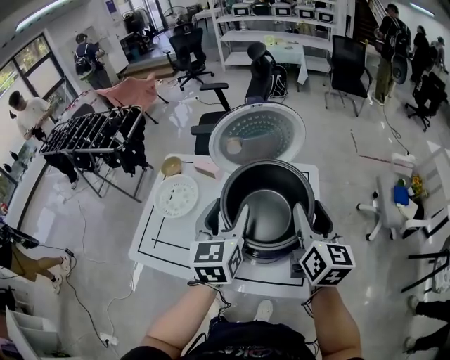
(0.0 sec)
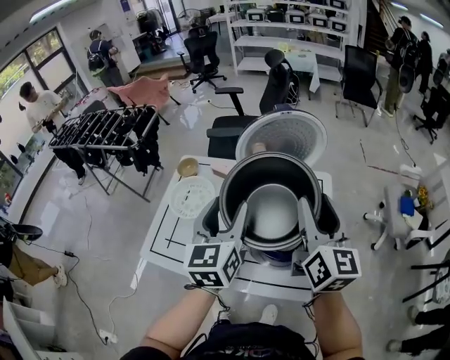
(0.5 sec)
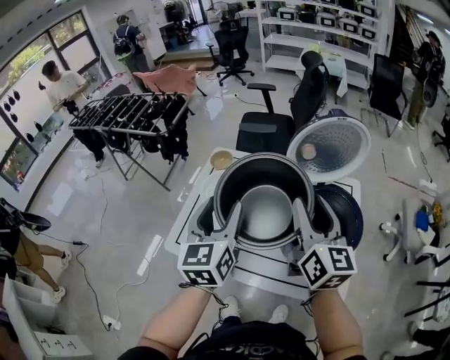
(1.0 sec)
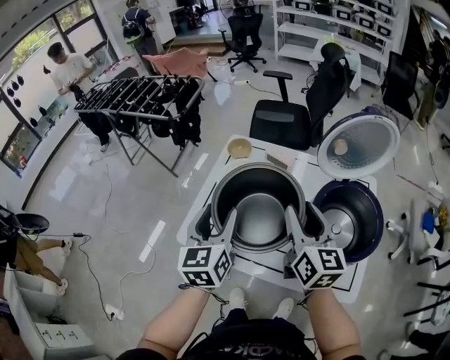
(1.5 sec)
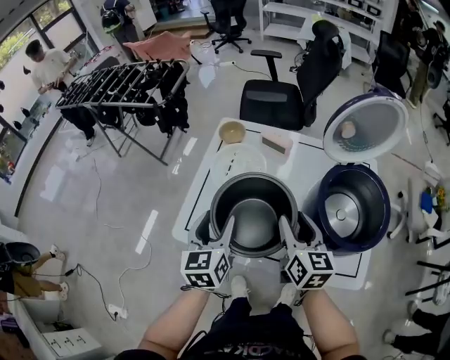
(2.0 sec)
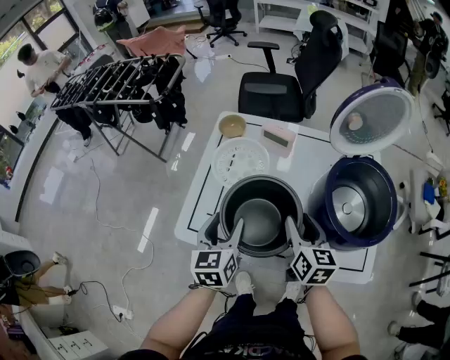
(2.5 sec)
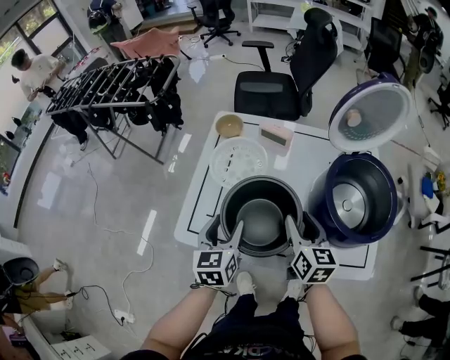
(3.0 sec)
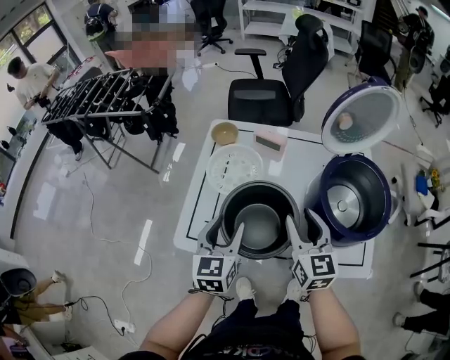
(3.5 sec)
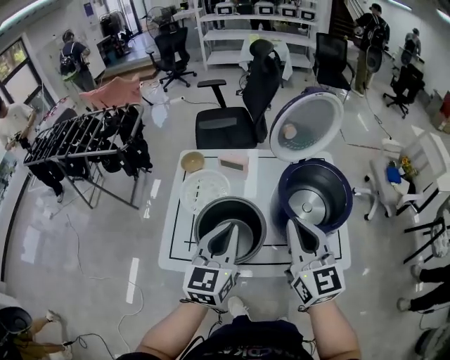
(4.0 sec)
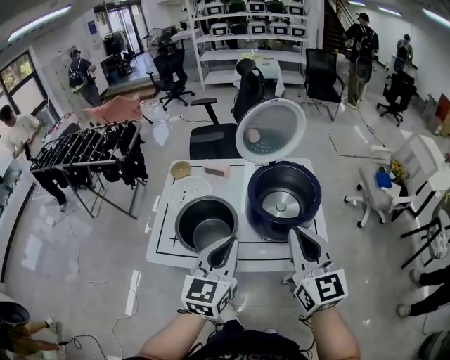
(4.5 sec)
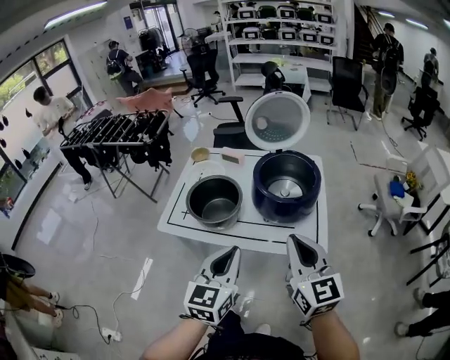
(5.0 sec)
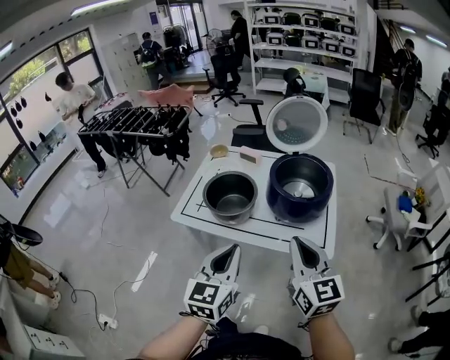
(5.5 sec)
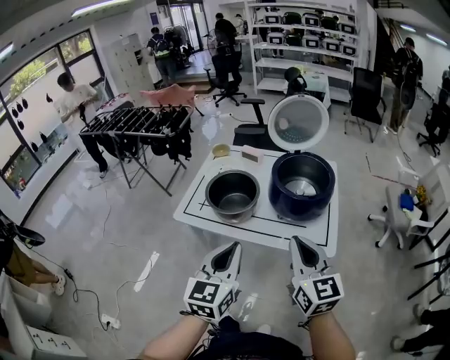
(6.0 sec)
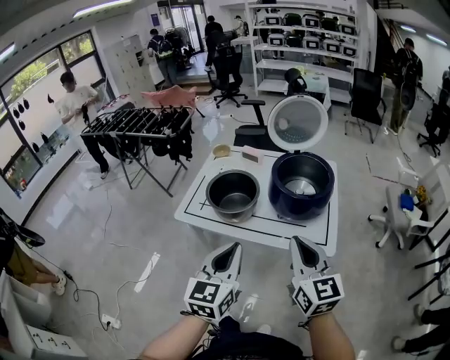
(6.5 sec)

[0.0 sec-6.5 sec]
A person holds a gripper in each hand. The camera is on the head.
0.0 sec to 2.0 sec: The grippers both shift to the left by about 30 cm.
2.0 sec to 4.5 sec: The right gripper heads backward, upward and to the right, covering roughly 25 cm, turns by approximately 30 degrees, and closes its fingers; the left gripper goes about 25 cm to the right, backward and upward, changes its angle by approximately 30 degrees, and closes.
4.5 sec to 6.5 sec: The grippers both shift backward by some 15 cm.

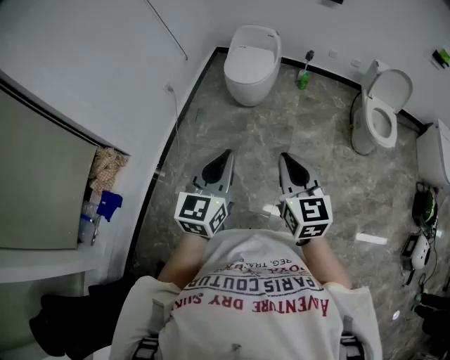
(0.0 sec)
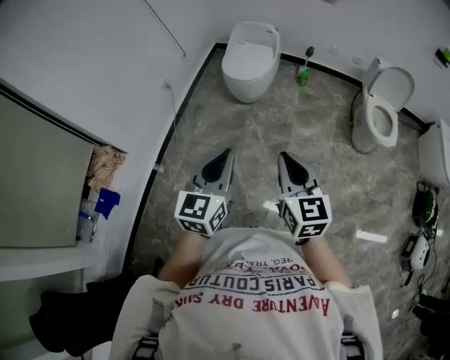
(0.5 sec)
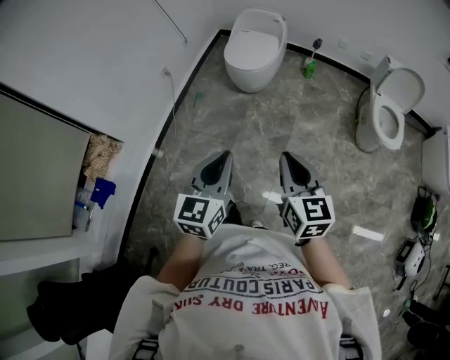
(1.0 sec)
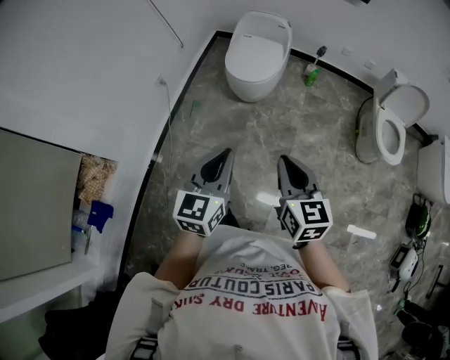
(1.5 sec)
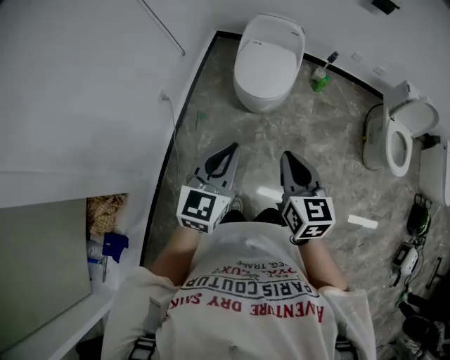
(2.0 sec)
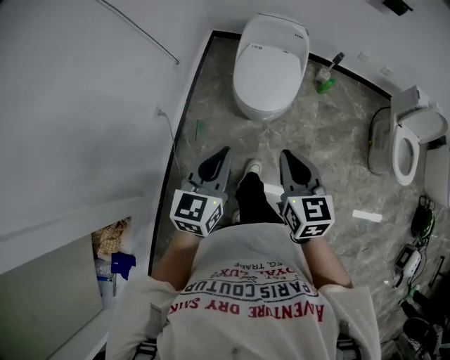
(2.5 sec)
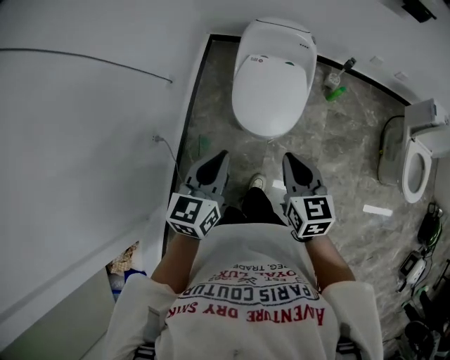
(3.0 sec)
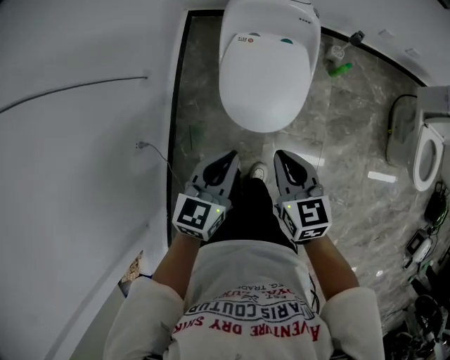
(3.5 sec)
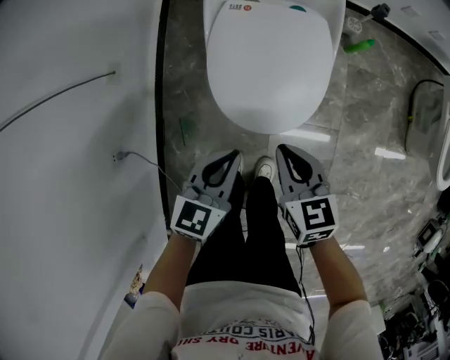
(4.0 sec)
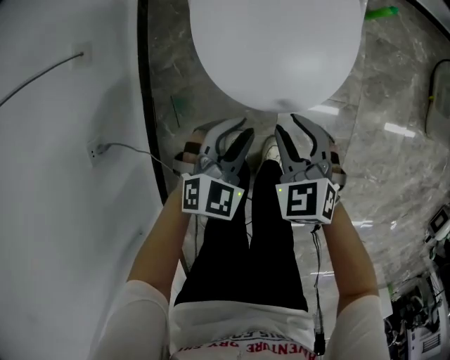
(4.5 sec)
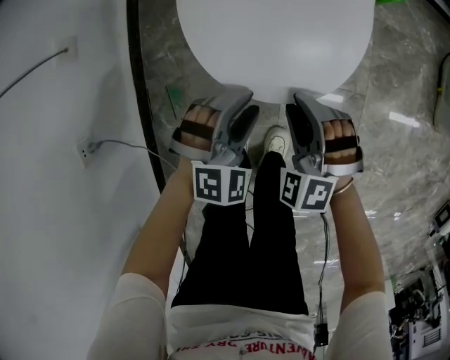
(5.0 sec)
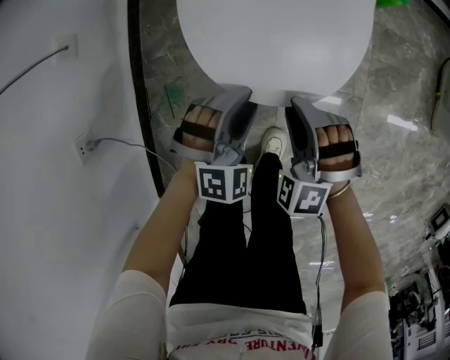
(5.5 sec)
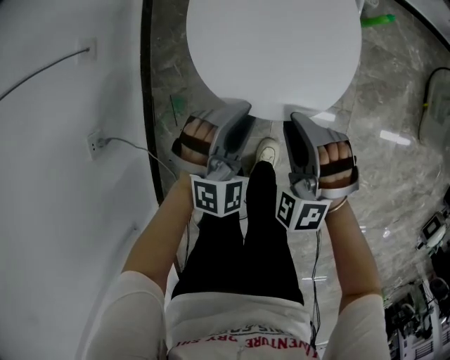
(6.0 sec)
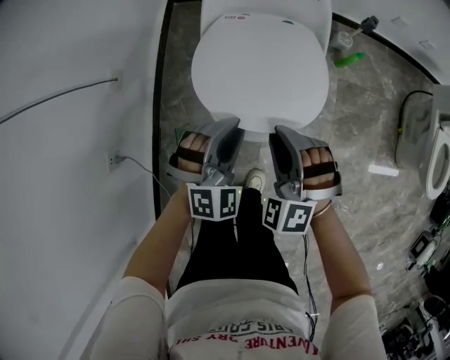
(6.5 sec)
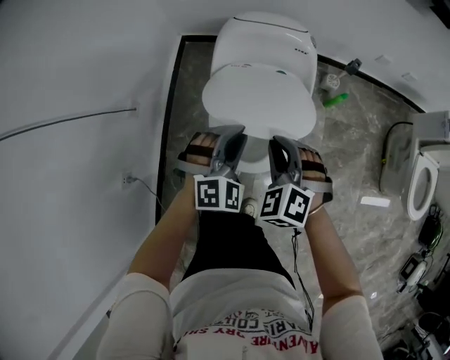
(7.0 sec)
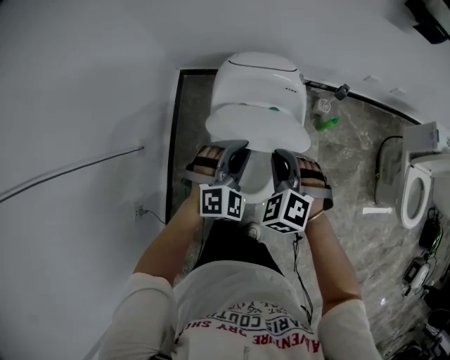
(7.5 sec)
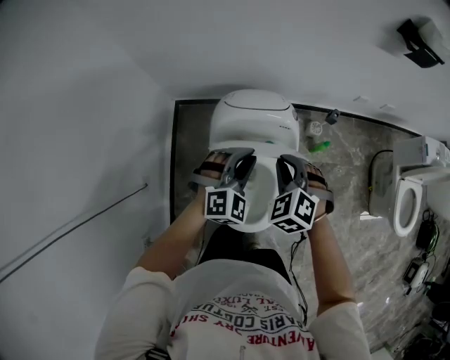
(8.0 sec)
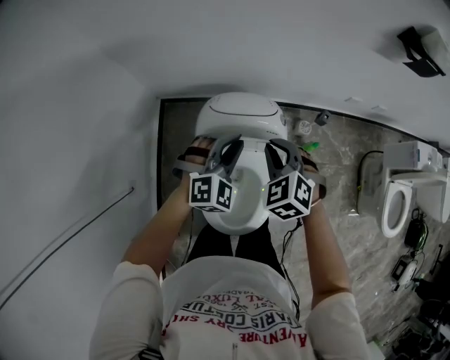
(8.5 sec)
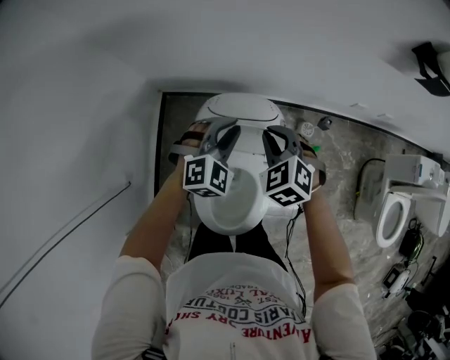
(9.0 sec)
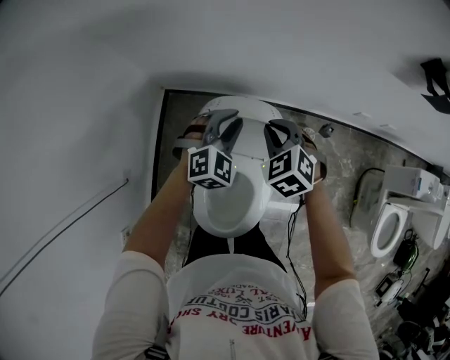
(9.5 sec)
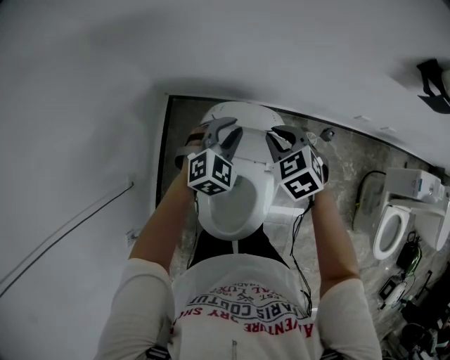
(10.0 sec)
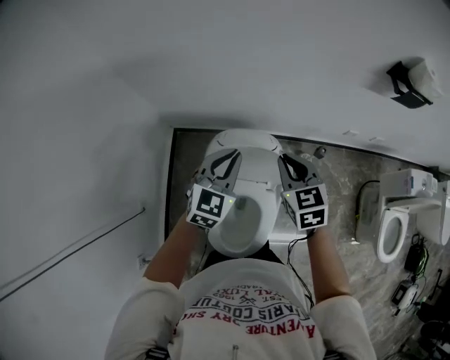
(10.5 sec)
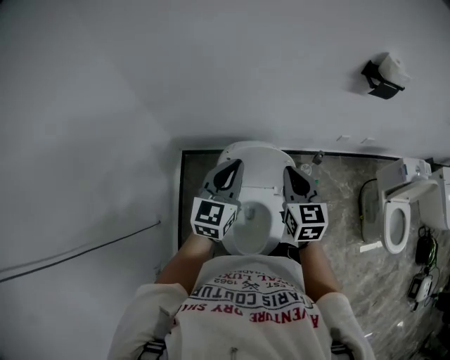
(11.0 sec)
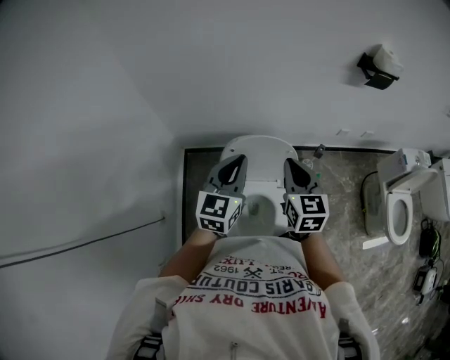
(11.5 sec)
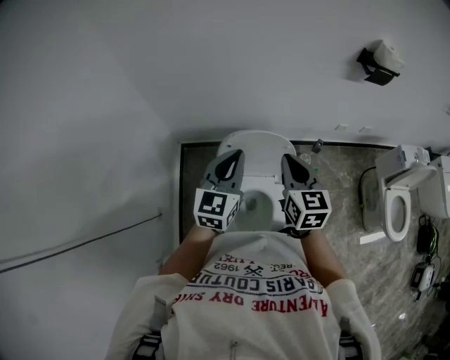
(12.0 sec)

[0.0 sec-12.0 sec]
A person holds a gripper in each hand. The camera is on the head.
0.0 sec to 2.0 sec: The pair of grippers is taken forward, roughly 40 cm.
2.0 sec to 4.0 sec: The two grippers travel together, forward, about 40 cm. The two grippers go roughly 40 cm downward. The left gripper turns by about 30 degrees.
4.0 sec to 6.0 sec: Both grippers move downward, about 10 cm. The right gripper rotates around the line of its fingers by about 70 degrees, counterclockwise from behind, and opens. The left gripper twists some 60 degrees clockwise, seen from behind, and opens up.
6.0 sec to 8.0 sec: The grippers both shift forward and upward by roughly 50 cm. The right gripper changes its angle by about 20 degrees.
8.0 sec to 10.0 sec: Both grippers move forward, some 15 cm. The right gripper swivels about 20 degrees.
10.0 sec to 12.0 sec: The grippers both shift upward and backward by approximately 25 cm. The left gripper tilts its fingers roughly 30 degrees upward, and closes its fingers, while the right gripper points its fingers roughly 30 degrees further upward.

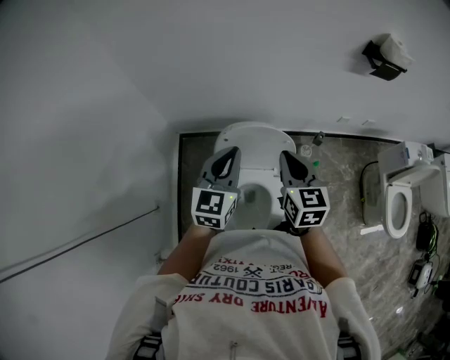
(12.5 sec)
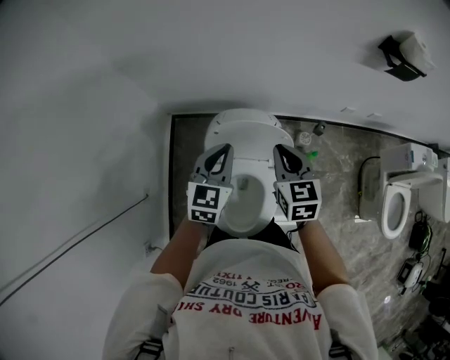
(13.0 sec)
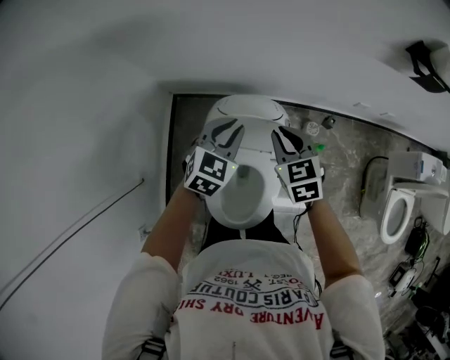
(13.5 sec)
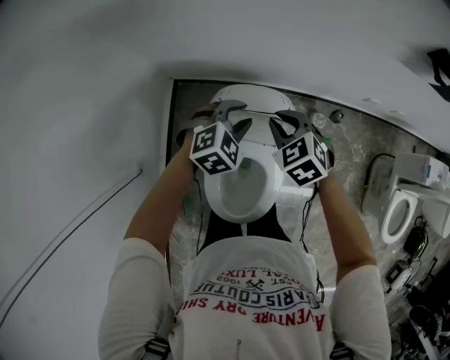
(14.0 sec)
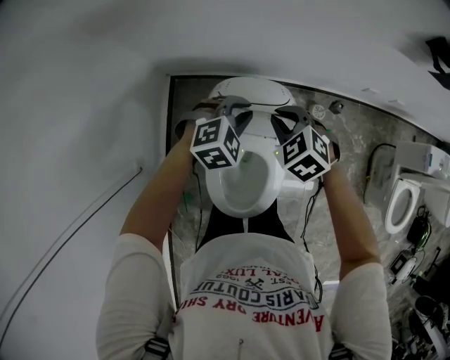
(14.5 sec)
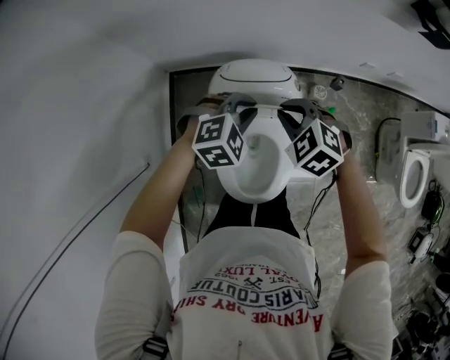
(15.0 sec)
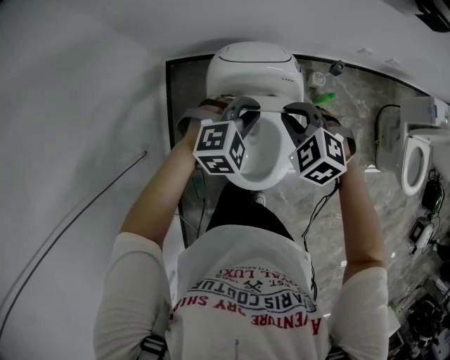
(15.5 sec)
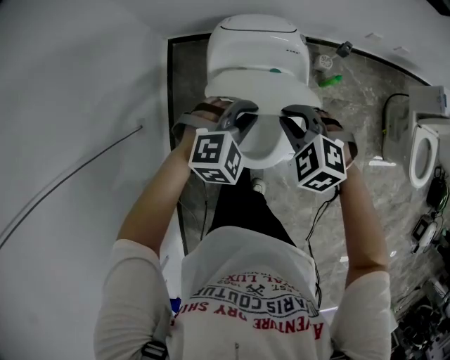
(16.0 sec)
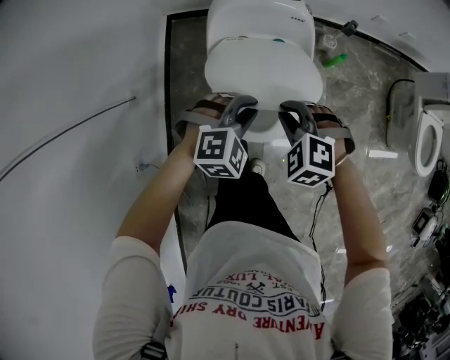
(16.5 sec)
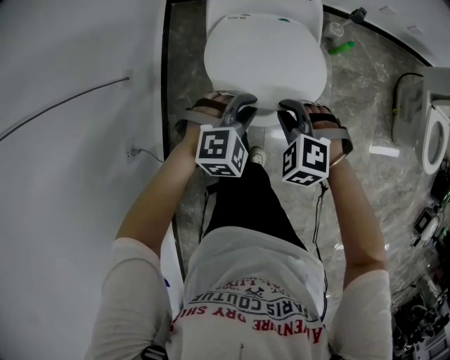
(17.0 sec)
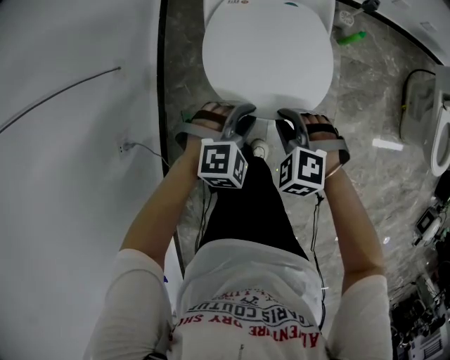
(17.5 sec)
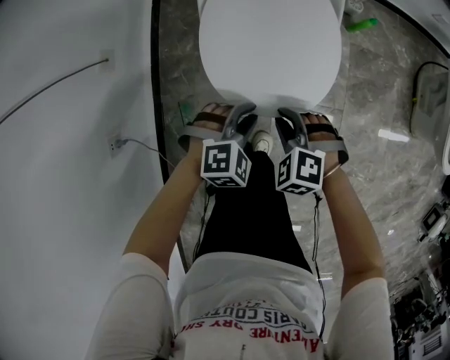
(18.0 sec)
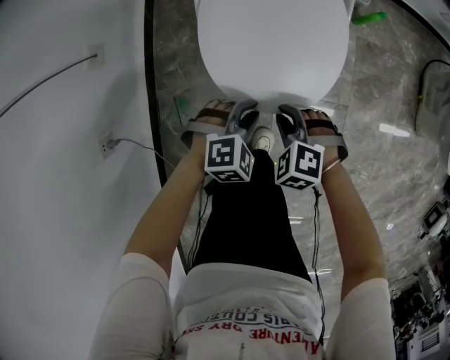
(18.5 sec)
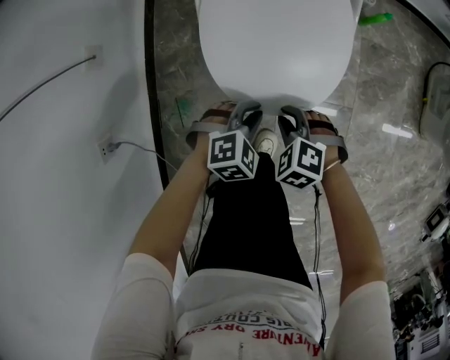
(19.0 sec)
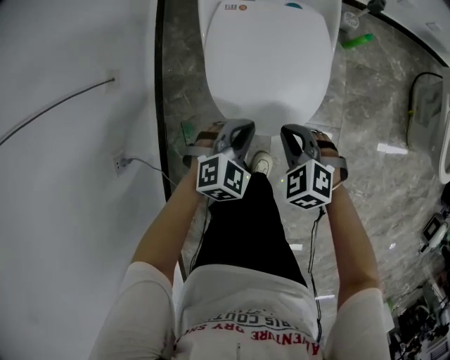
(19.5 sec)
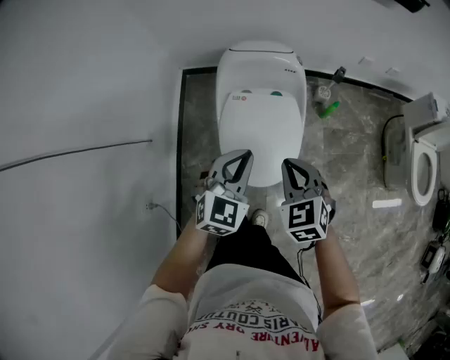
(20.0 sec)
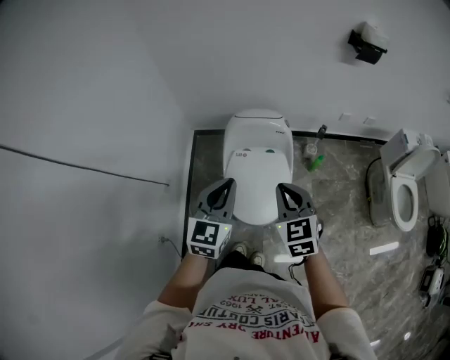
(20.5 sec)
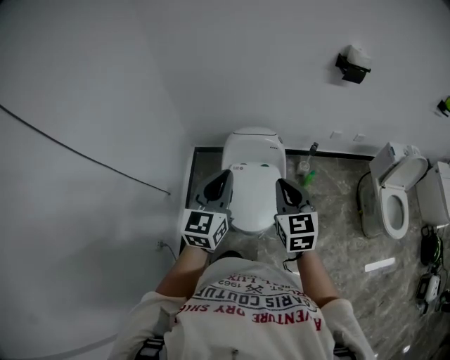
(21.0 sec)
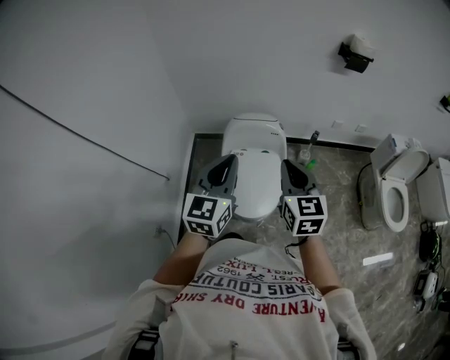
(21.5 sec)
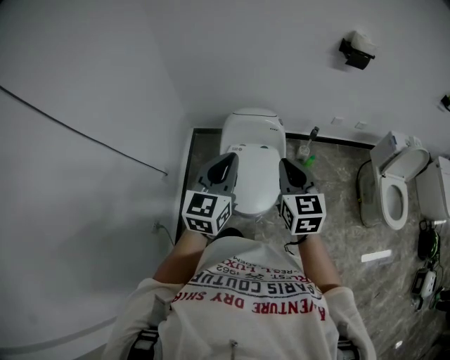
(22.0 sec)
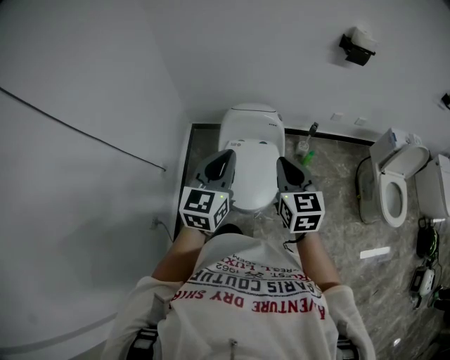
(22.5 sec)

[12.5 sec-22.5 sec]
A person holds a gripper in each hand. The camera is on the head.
12.5 sec to 14.5 sec: The two grippers go approximately 20 cm downward and forward. The left gripper tips its fingers downward by roughly 40 degrees. Meanwhile the right gripper points its fingers about 30 degrees further downward.
14.5 sec to 16.5 sec: The two grippers go some 35 cm backward.
16.5 sec to 18.5 sec: Both grippers move downward and backward, approximately 30 cm.
18.5 sec to 20.5 sec: Both grippers travel together upward, roughly 60 cm. The right gripper tips its fingers upward by about 40 degrees, while the left gripper tilts its fingers about 50 degrees upward, and closes its fingers.
20.5 sec to 22.5 sec: Both grippers move upward, about 10 cm.
